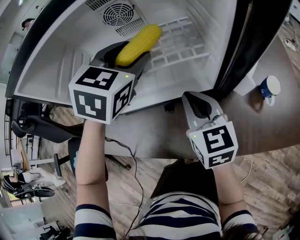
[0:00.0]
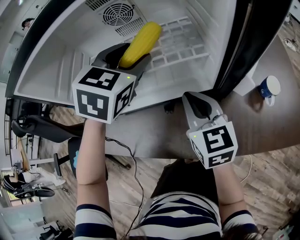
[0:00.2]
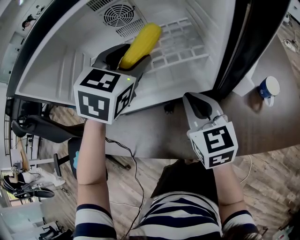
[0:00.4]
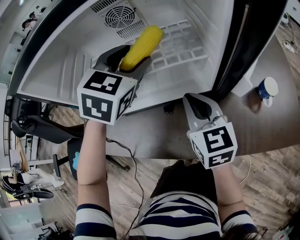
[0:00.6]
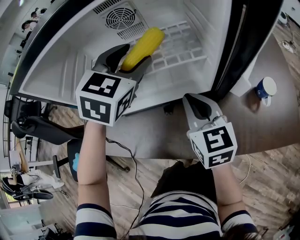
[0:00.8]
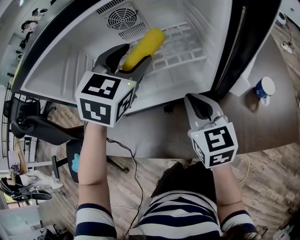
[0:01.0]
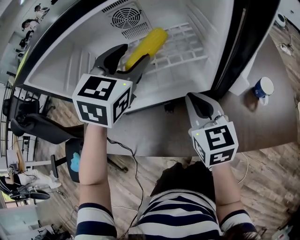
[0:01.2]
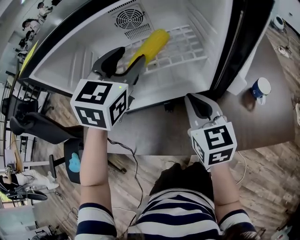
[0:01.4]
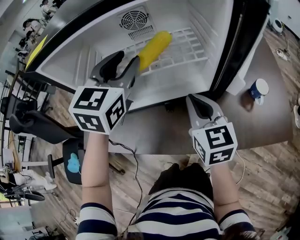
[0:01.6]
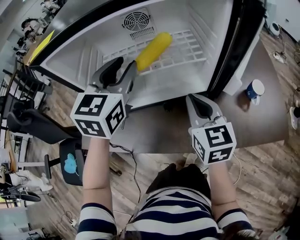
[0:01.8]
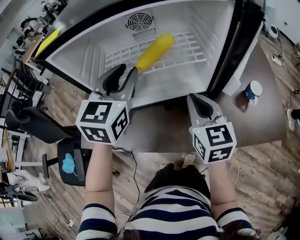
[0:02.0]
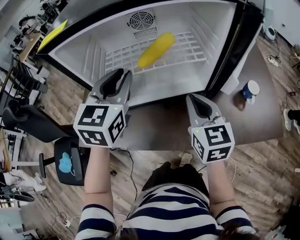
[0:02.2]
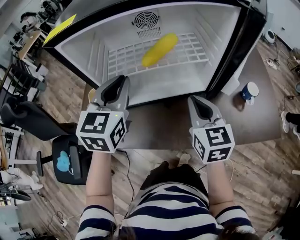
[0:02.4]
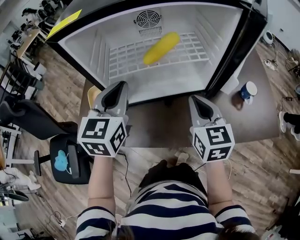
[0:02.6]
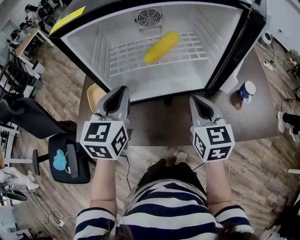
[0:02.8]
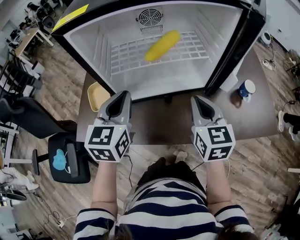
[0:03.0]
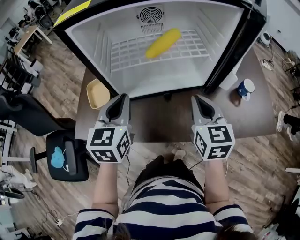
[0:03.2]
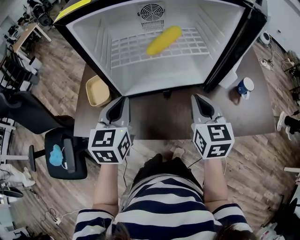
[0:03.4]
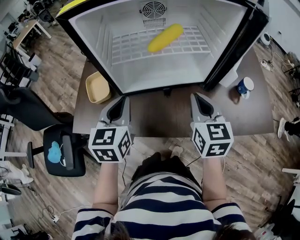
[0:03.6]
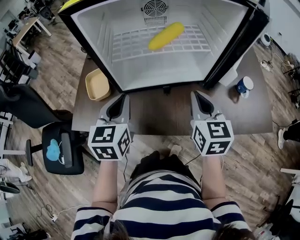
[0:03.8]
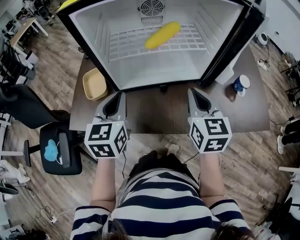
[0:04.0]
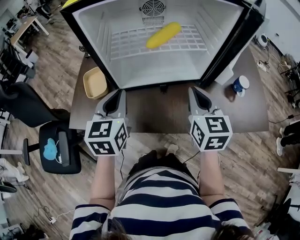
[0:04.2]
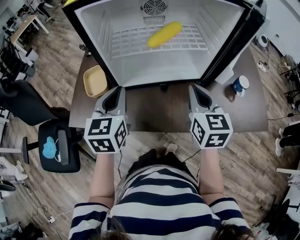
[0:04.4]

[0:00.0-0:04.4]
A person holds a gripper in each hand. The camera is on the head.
0:00.0 to 0:01.4: The left gripper changes place by roughly 5 cm.
0:01.4 to 0:03.0: The left gripper goes roughly 20 cm backward and to the left, and rotates about 20 degrees; the right gripper travels backward by about 5 cm.
0:03.0 to 0:04.4: The grippers make only small movements.

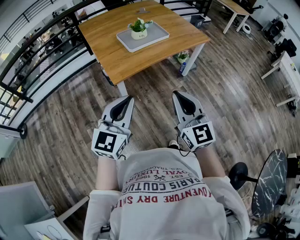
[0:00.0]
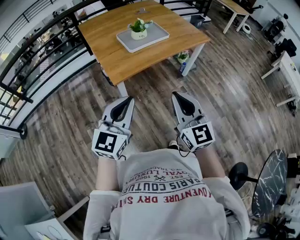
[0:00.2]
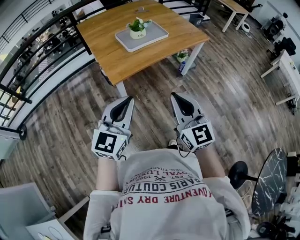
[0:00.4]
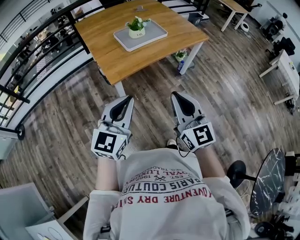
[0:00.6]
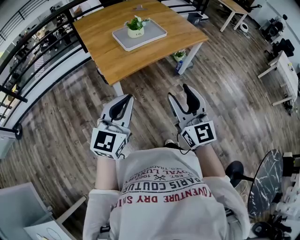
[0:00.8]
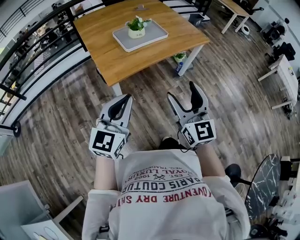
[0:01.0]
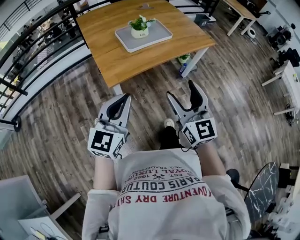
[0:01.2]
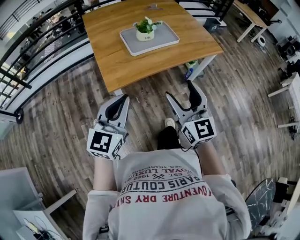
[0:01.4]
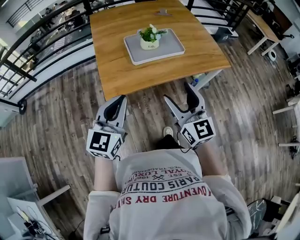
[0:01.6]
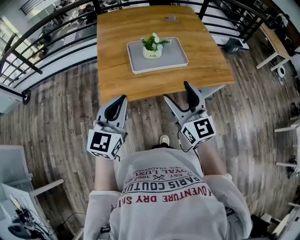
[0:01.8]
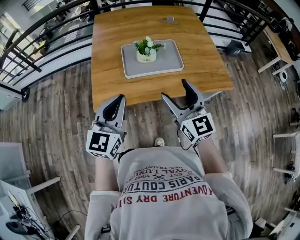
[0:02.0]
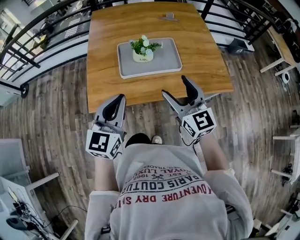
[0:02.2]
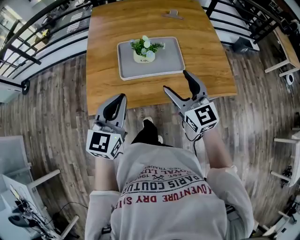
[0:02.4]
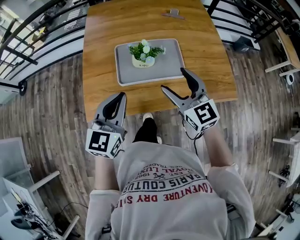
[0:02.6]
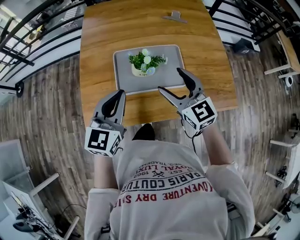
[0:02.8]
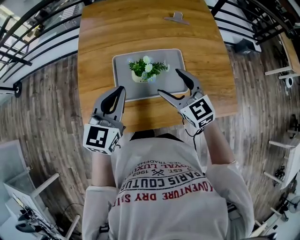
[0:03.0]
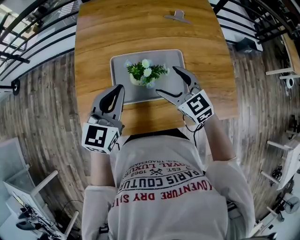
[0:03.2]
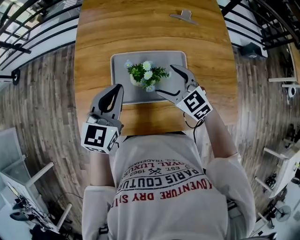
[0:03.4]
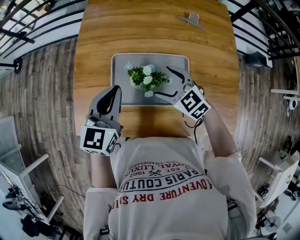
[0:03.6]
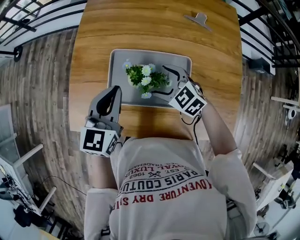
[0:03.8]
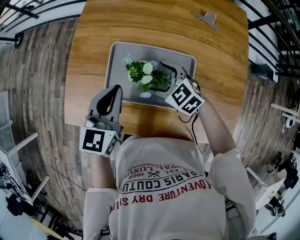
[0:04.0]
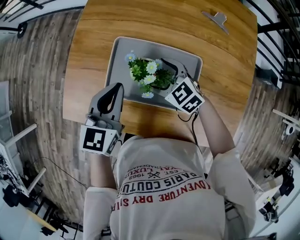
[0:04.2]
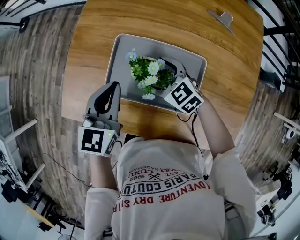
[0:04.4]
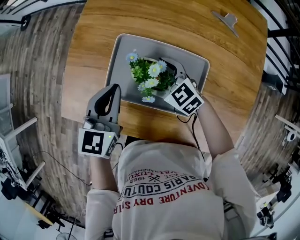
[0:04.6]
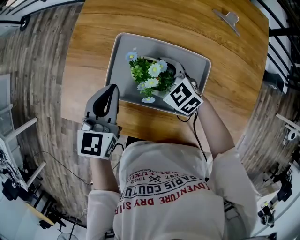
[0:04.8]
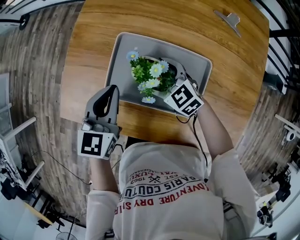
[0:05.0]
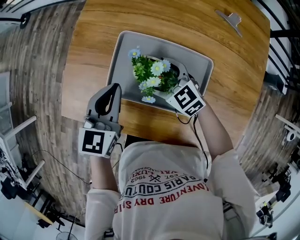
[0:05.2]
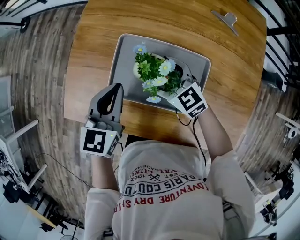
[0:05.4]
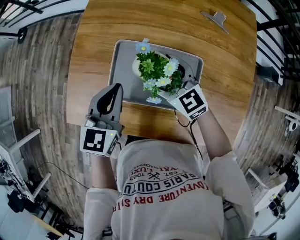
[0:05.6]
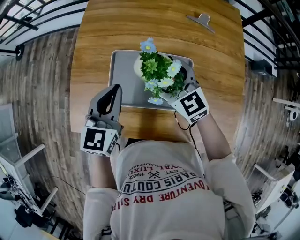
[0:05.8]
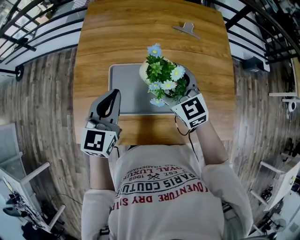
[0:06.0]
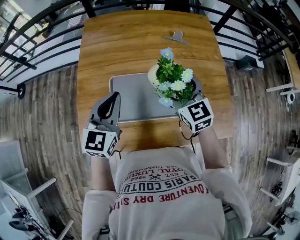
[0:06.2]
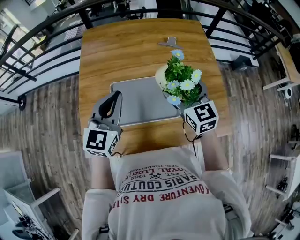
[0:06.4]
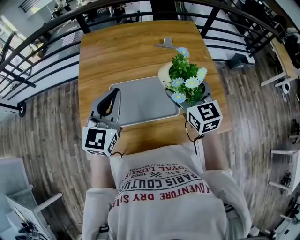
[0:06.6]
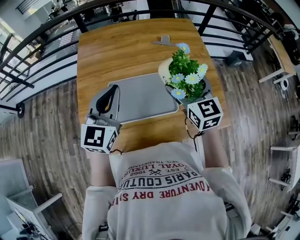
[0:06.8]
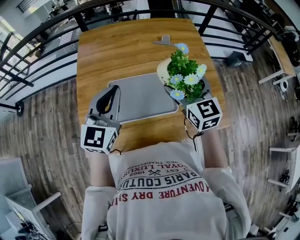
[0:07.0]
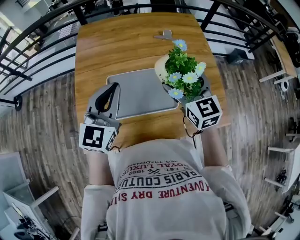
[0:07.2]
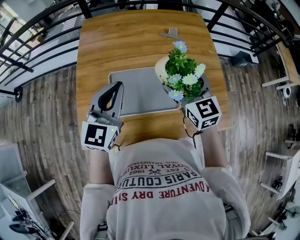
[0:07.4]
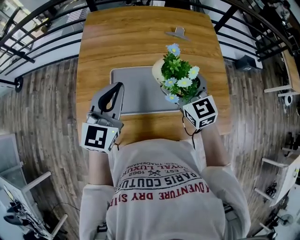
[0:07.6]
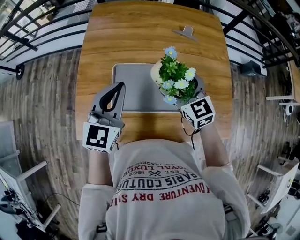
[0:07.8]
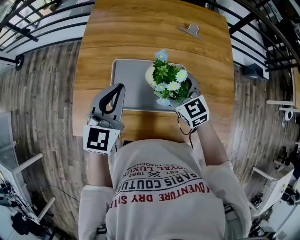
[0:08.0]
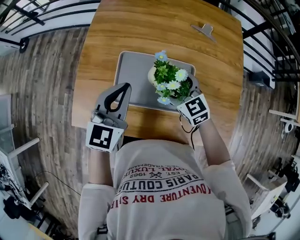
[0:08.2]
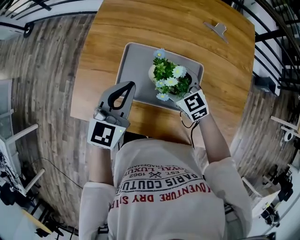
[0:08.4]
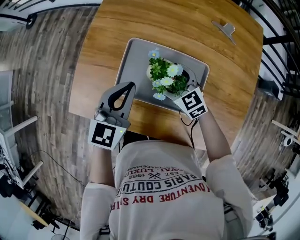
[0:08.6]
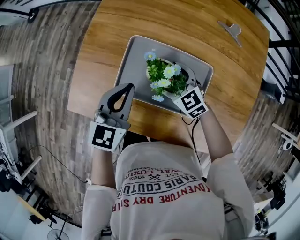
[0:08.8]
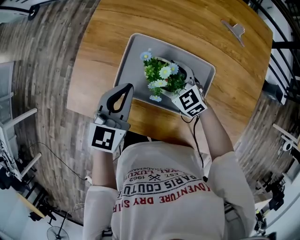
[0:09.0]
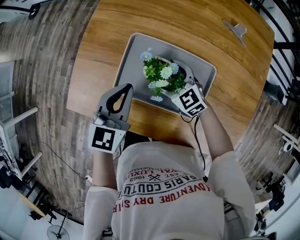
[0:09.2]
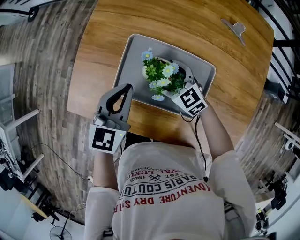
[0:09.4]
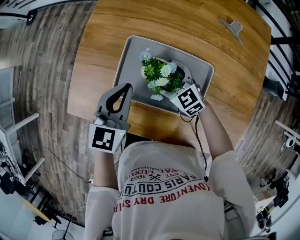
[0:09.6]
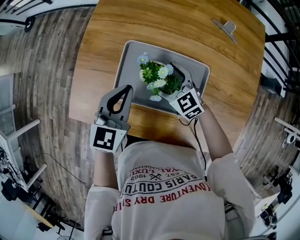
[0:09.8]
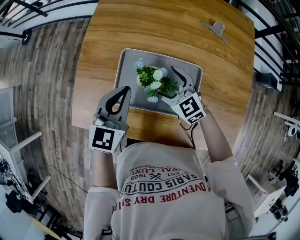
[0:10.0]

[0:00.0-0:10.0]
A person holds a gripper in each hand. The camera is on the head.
0:00.0 to 0:01.4: Both grippers move forward, approximately 15 cm. The right gripper opens up.
0:01.4 to 0:02.8: The left gripper moves forward and to the right, about 35 cm, and turns by some 20 degrees, while the right gripper shifts some 40 cm forward, and turns by about 30 degrees.
0:02.8 to 0:04.2: The right gripper shifts roughly 20 cm downward, and rotates about 50 degrees. The left gripper changes place by roughly 15 cm, and turns by some 20 degrees.
0:04.2 to 0:05.8: The right gripper is displaced upward by roughly 10 cm, and swivels roughly 30 degrees.
0:05.8 to 0:07.2: The right gripper moves upward and to the right, roughly 20 cm, and swivels roughly 30 degrees. The left gripper travels upward by roughly 15 cm, and changes its angle by some 20 degrees.
0:07.2 to 0:08.6: The right gripper travels downward by roughly 25 cm, and swivels some 50 degrees. Meanwhile the left gripper travels downward by approximately 15 cm, and turns by about 30 degrees.
0:08.6 to 0:10.0: There are only small adjustments of the grippers.

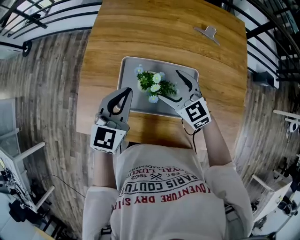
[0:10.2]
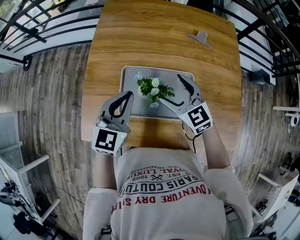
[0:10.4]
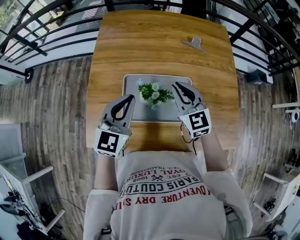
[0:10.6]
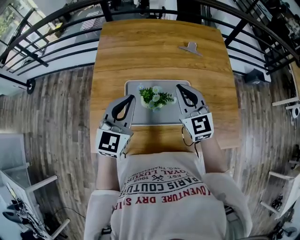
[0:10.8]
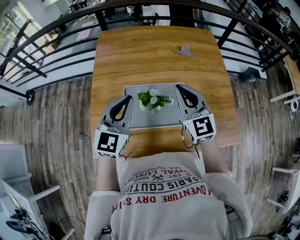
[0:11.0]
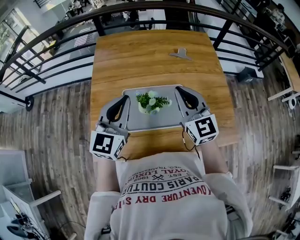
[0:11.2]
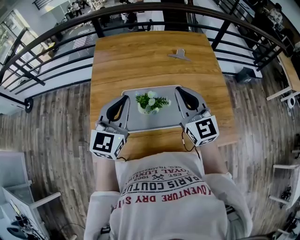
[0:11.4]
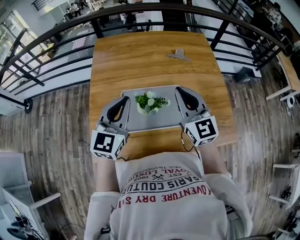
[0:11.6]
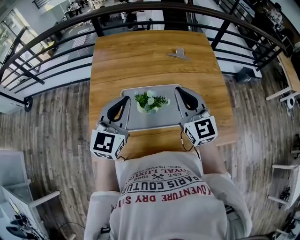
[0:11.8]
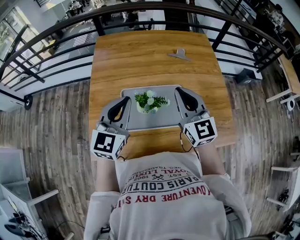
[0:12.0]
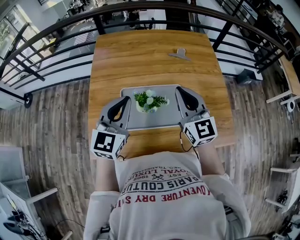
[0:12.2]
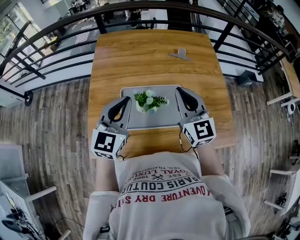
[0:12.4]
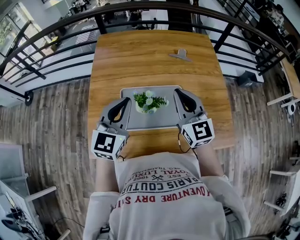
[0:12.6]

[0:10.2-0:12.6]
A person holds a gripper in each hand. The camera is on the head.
0:10.2 to 0:11.4: The left gripper is displaced upward by some 10 cm, while the right gripper goes about 20 cm upward, rotates roughly 40 degrees, and closes.
0:11.4 to 0:12.6: The grippers stay close to where they were, moving slightly.

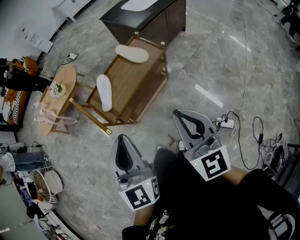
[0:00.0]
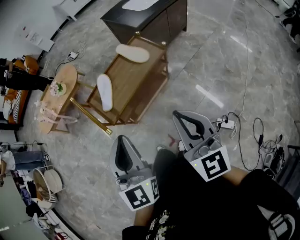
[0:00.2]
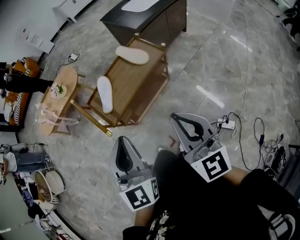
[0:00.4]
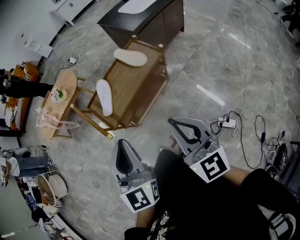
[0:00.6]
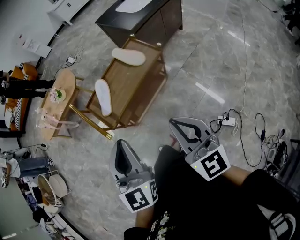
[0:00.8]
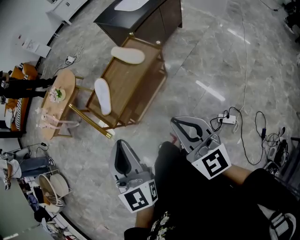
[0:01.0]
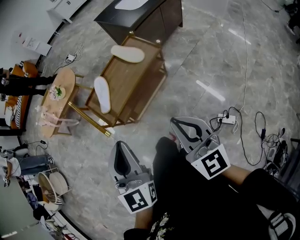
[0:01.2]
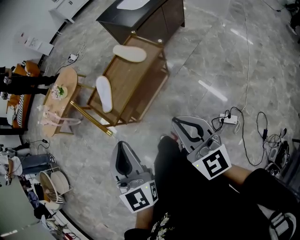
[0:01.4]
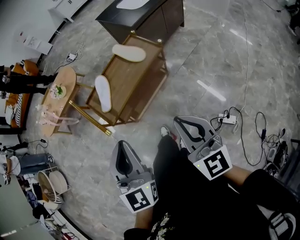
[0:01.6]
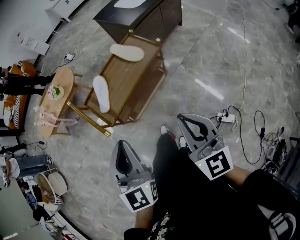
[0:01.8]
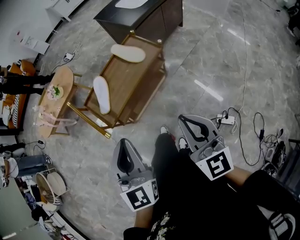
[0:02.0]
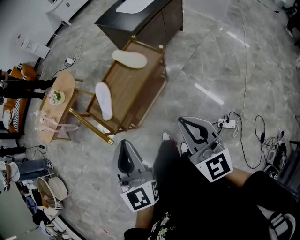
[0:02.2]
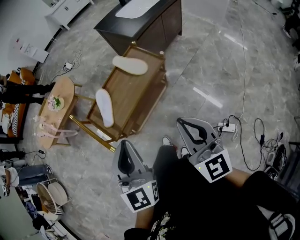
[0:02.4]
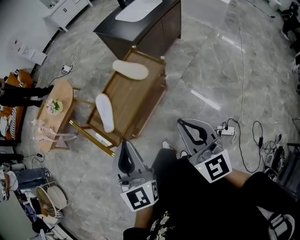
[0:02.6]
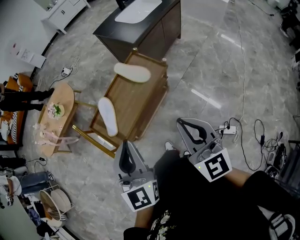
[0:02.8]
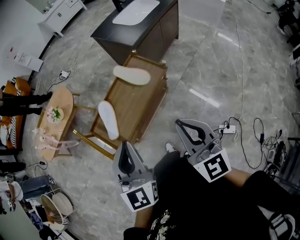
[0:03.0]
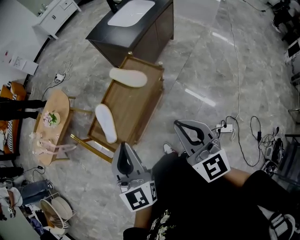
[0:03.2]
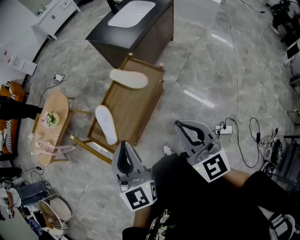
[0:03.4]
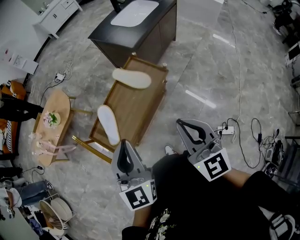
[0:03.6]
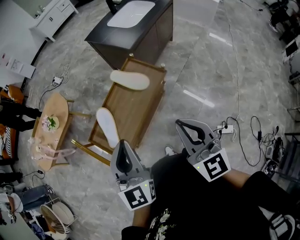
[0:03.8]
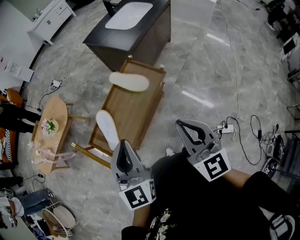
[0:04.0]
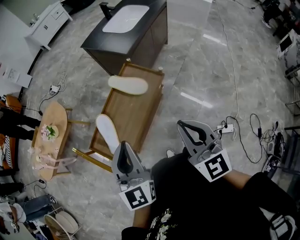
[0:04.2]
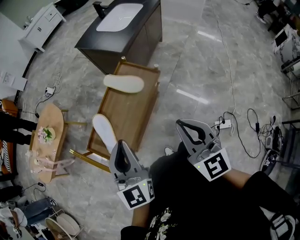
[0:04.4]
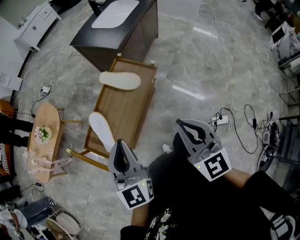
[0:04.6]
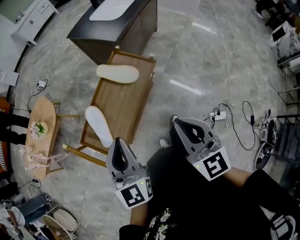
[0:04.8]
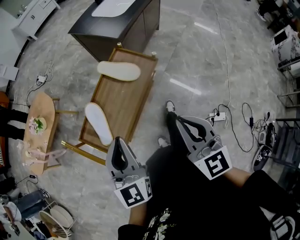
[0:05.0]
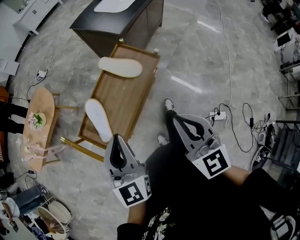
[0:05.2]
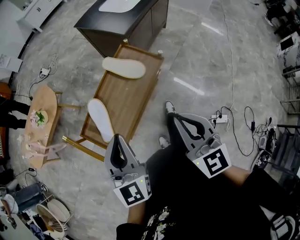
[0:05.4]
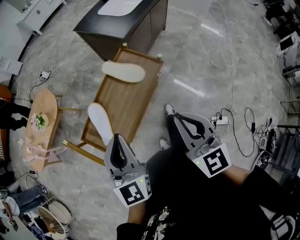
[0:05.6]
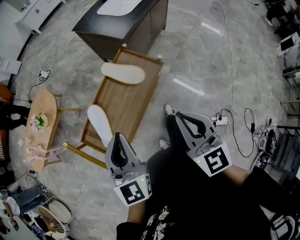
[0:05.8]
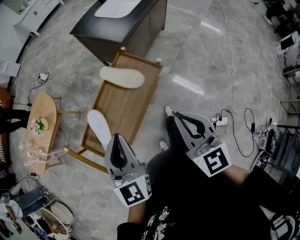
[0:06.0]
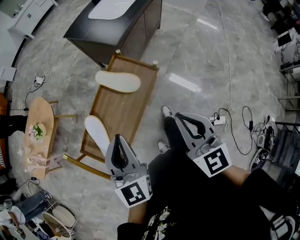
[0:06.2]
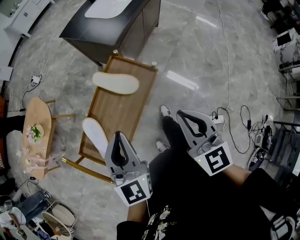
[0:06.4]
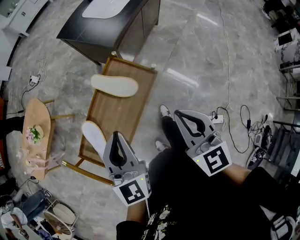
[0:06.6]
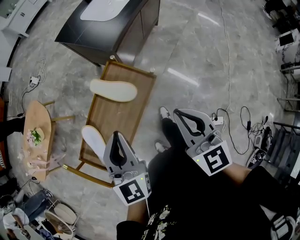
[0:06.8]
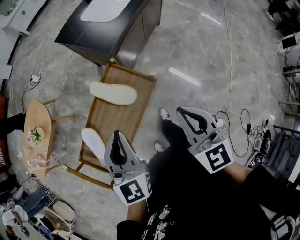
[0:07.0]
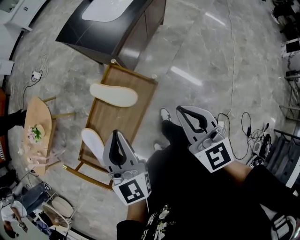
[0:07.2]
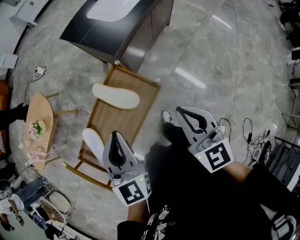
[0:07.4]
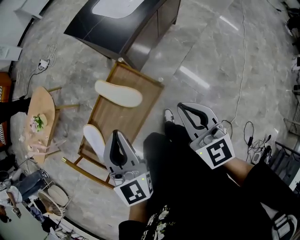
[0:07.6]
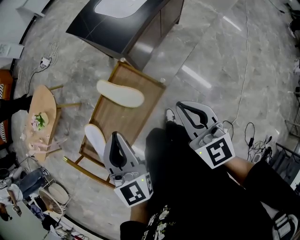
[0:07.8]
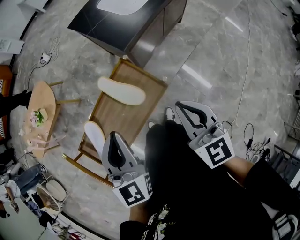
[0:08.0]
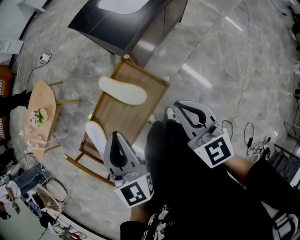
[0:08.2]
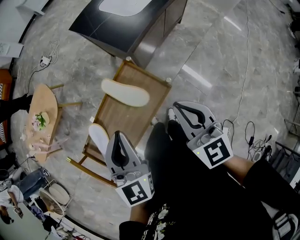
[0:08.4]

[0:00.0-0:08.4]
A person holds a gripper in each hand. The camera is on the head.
0:00.0 to 0:01.4: The grippers move only a little.
0:01.4 to 0:02.8: The grippers both shift forward by roughly 10 cm.
0:02.8 to 0:04.2: The left gripper heads forward, covering about 10 cm, while the right gripper is displaced forward by approximately 5 cm.
0:04.2 to 0:05.6: There are only small adjustments of the grippers.
0:05.6 to 0:07.0: Both grippers travel together forward and to the right, about 20 cm.
0:07.0 to 0:08.4: The right gripper travels forward by approximately 10 cm.
